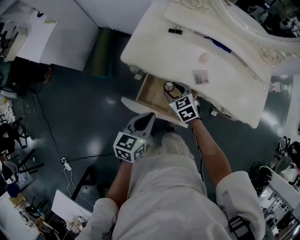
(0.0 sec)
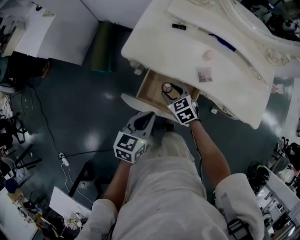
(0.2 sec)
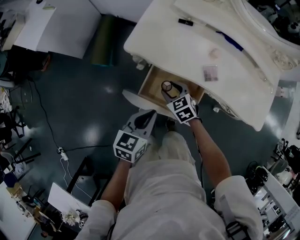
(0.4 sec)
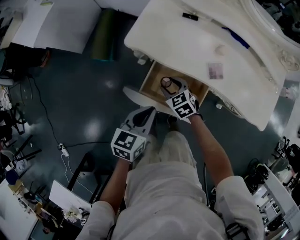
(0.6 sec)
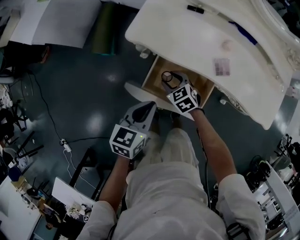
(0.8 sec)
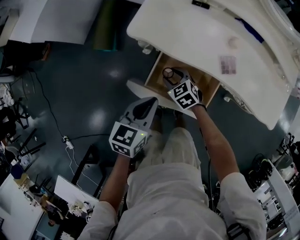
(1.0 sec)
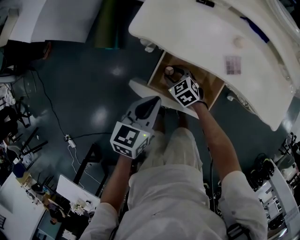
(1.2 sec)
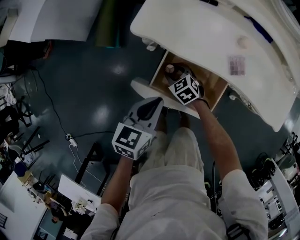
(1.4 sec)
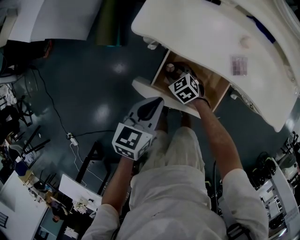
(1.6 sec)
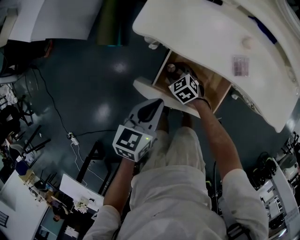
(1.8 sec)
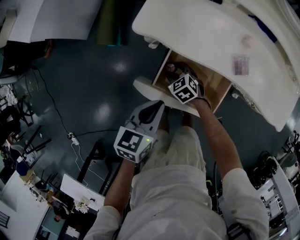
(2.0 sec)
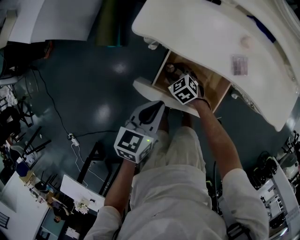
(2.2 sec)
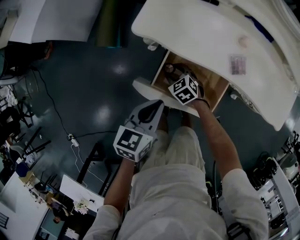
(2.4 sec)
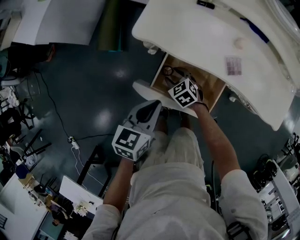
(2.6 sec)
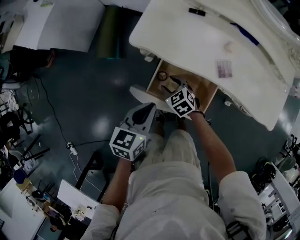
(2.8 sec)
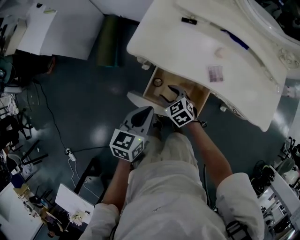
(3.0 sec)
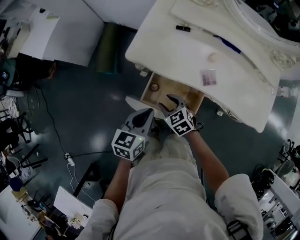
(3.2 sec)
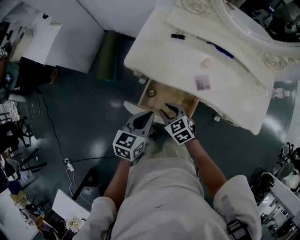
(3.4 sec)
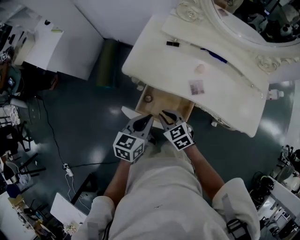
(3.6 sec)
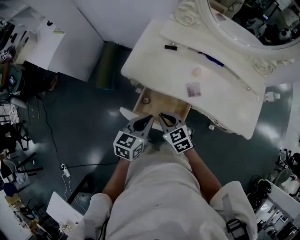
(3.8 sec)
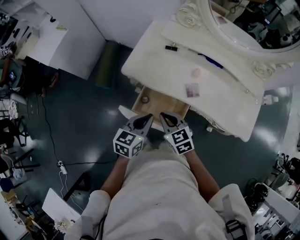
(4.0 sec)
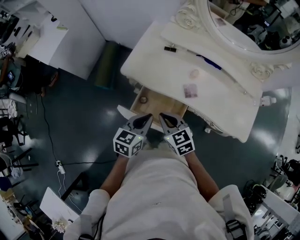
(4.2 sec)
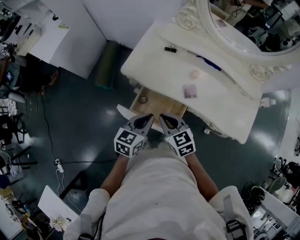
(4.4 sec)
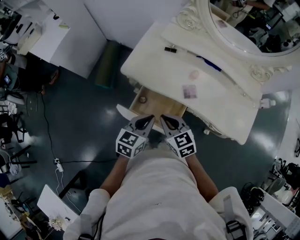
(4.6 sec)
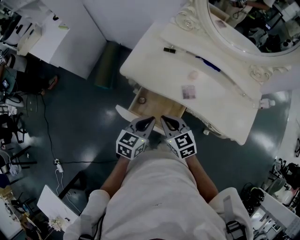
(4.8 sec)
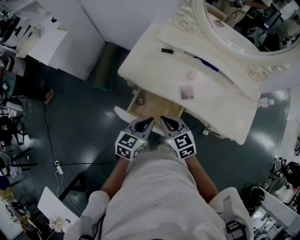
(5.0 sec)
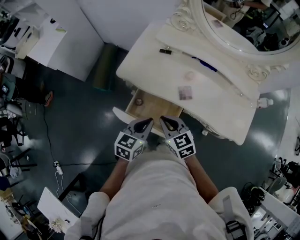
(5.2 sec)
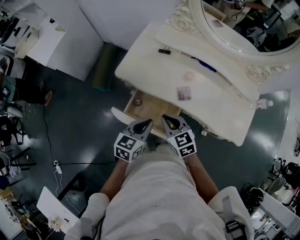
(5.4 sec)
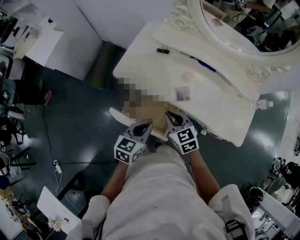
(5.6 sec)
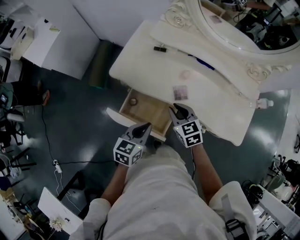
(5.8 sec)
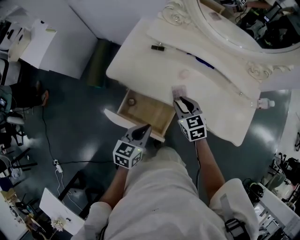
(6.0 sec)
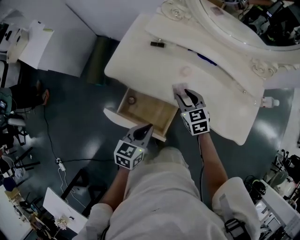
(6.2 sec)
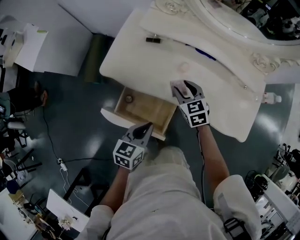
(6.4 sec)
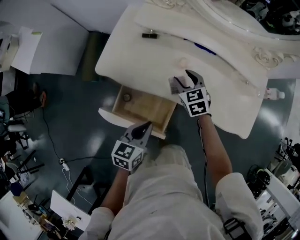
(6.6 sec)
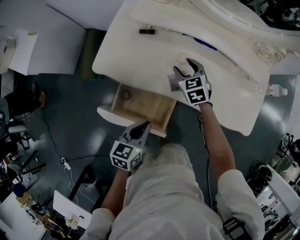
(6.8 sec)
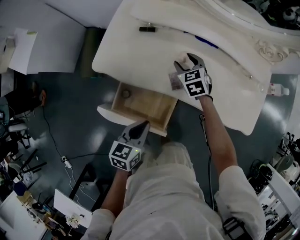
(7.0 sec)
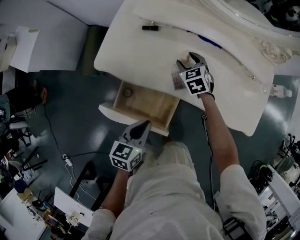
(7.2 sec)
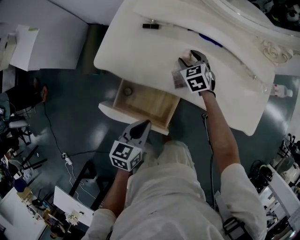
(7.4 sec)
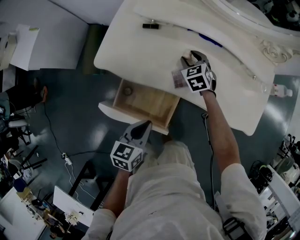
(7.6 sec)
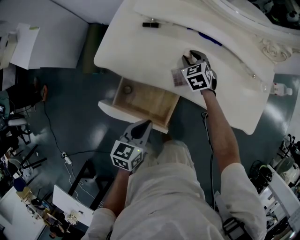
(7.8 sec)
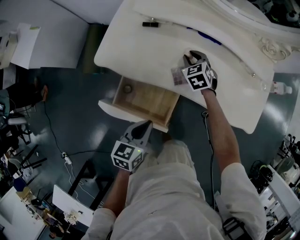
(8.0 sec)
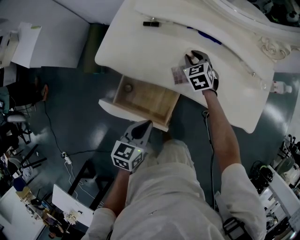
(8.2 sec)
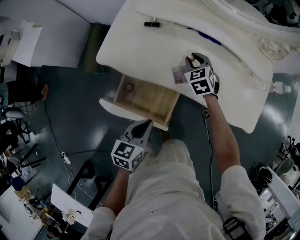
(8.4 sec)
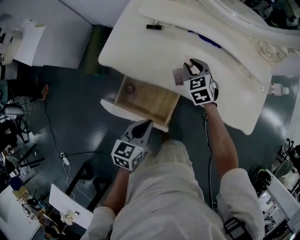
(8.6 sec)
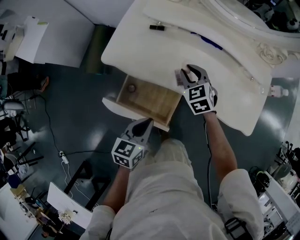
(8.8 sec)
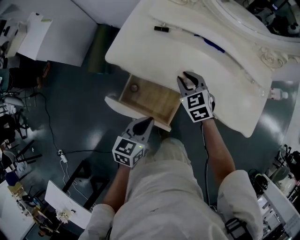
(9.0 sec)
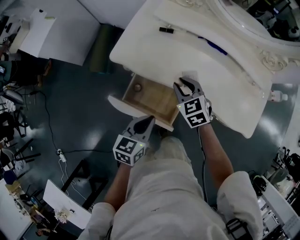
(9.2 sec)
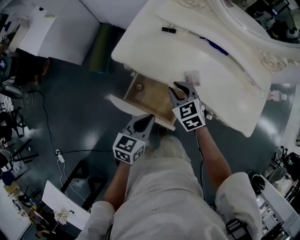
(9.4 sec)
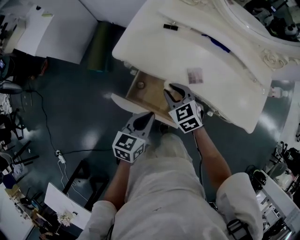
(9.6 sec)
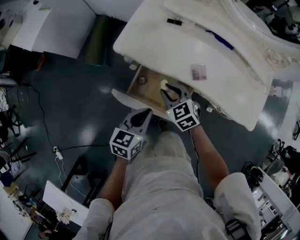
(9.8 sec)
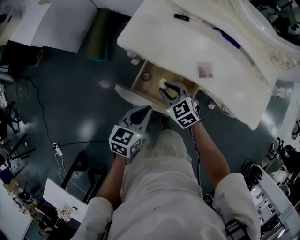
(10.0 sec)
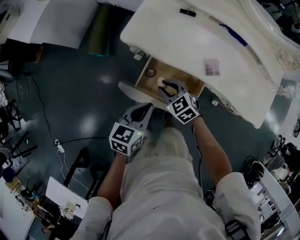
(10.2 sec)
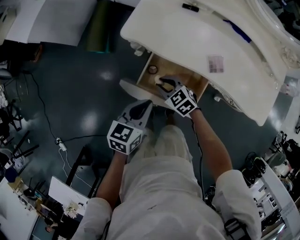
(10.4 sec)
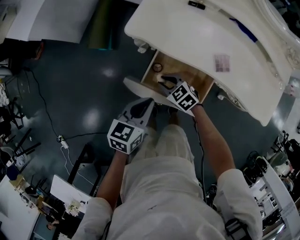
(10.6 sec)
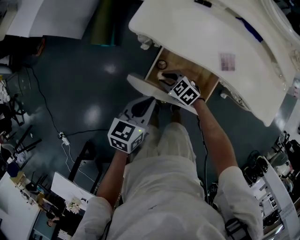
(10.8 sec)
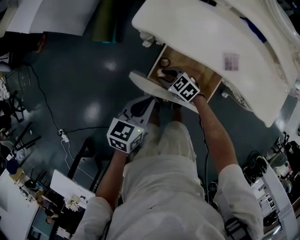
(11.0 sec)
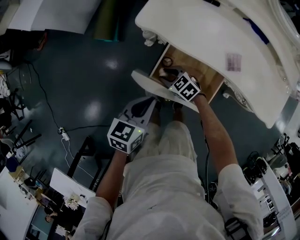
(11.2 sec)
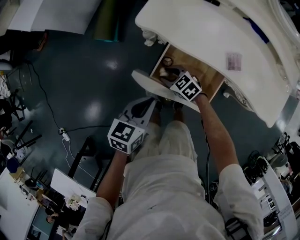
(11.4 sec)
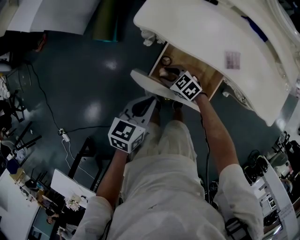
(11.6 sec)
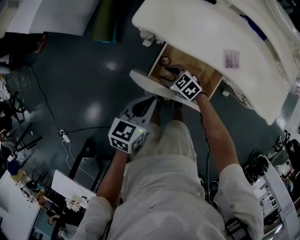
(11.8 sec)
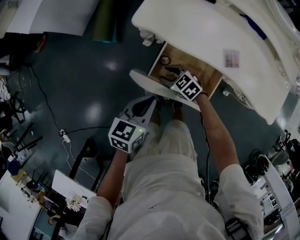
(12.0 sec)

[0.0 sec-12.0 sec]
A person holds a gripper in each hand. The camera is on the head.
0.0 sec to 1.6 sec: The left gripper is displaced downward by some 10 cm. Meanwhile the right gripper goes about 20 cm downward and to the left.
1.6 sec to 3.0 sec: The right gripper travels upward by approximately 10 cm. Meanwhile the left gripper is displaced upward by about 5 cm.
3.0 sec to 4.4 sec: The left gripper shifts roughly 10 cm to the right and upward, while the right gripper is displaced upward and to the right by roughly 20 cm, and closes.
4.4 sec to 6.0 sec: The left gripper travels to the right by some 5 cm; the right gripper goes some 20 cm to the right and forward.
6.0 sec to 7.6 sec: The right gripper moves forward and downward, approximately 20 cm.
7.6 sec to 9.0 sec: The right gripper shifts about 15 cm backward and upward.
9.0 sec to 10.4 sec: The left gripper moves to the left, some 15 cm. The right gripper goes roughly 30 cm to the left, downward and backward, and changes its angle by about 30 degrees.
10.4 sec to 12.0 sec: The right gripper shifts roughly 5 cm downward.

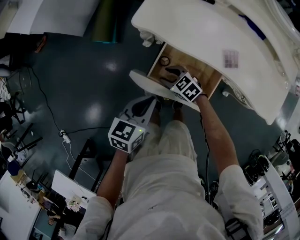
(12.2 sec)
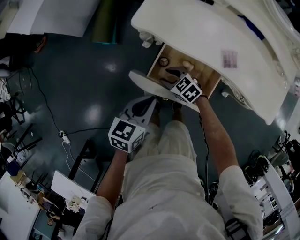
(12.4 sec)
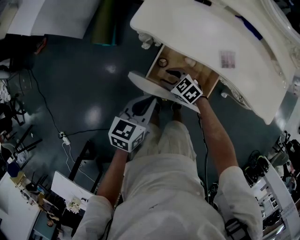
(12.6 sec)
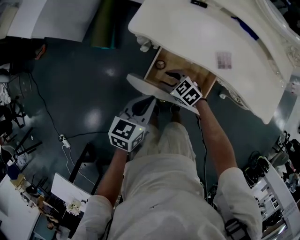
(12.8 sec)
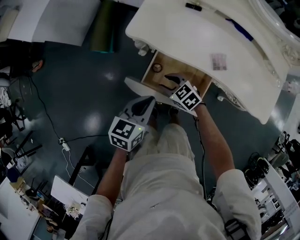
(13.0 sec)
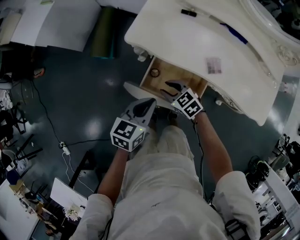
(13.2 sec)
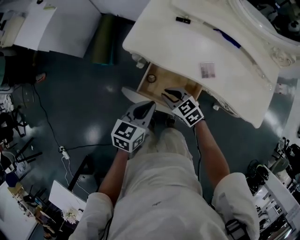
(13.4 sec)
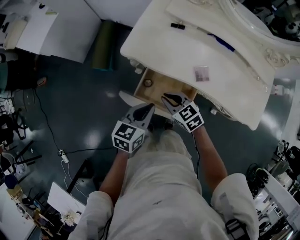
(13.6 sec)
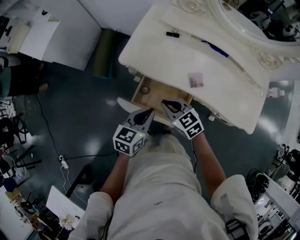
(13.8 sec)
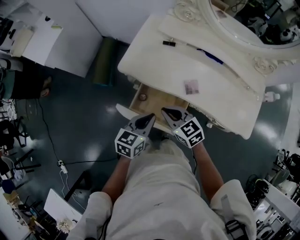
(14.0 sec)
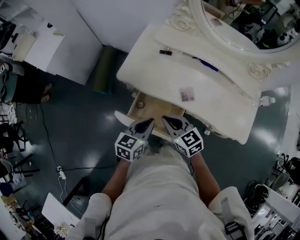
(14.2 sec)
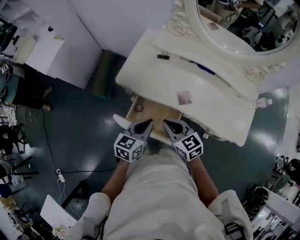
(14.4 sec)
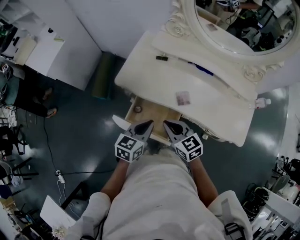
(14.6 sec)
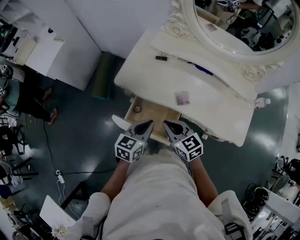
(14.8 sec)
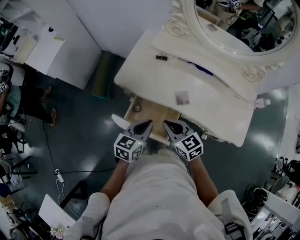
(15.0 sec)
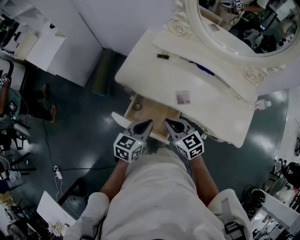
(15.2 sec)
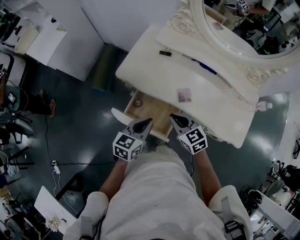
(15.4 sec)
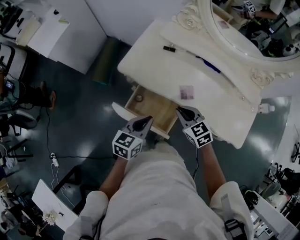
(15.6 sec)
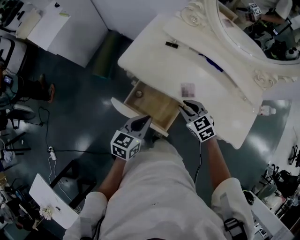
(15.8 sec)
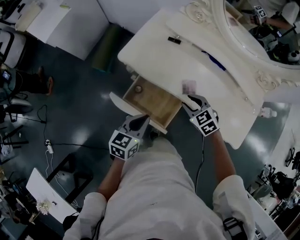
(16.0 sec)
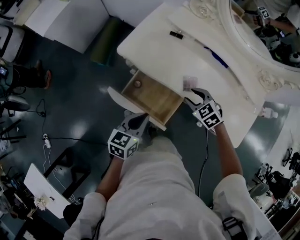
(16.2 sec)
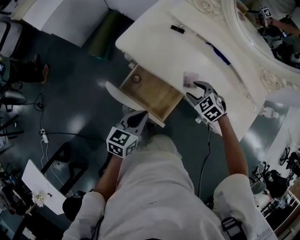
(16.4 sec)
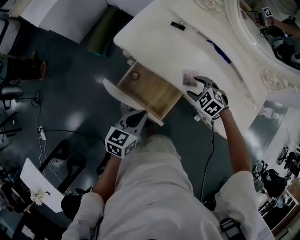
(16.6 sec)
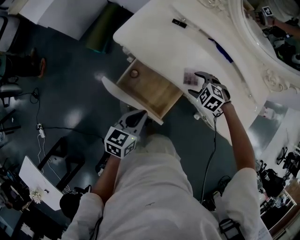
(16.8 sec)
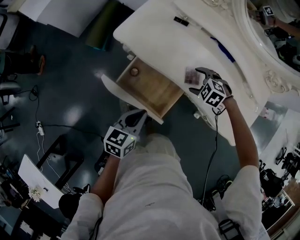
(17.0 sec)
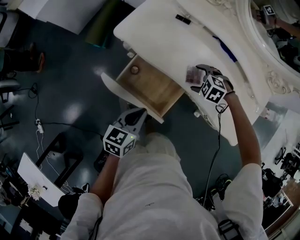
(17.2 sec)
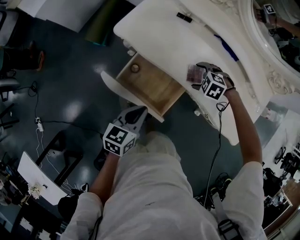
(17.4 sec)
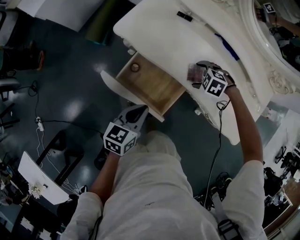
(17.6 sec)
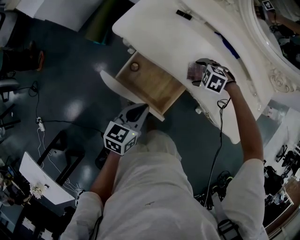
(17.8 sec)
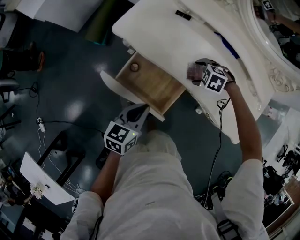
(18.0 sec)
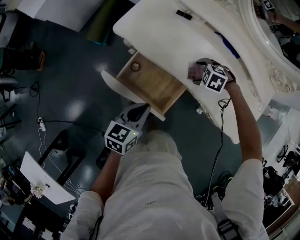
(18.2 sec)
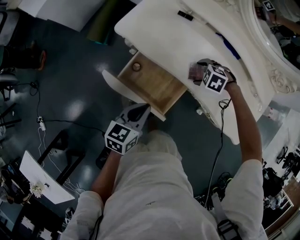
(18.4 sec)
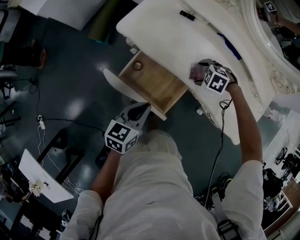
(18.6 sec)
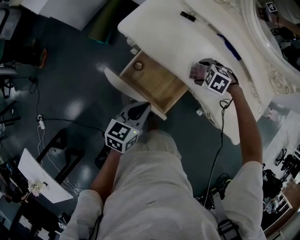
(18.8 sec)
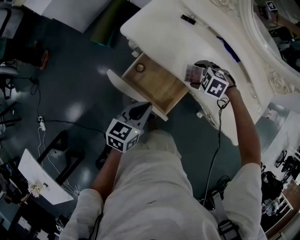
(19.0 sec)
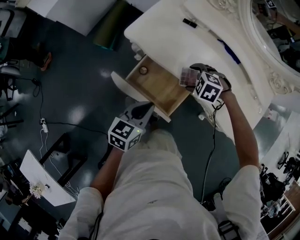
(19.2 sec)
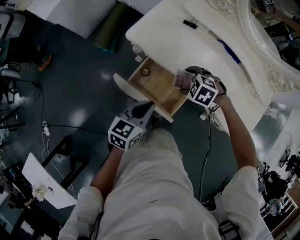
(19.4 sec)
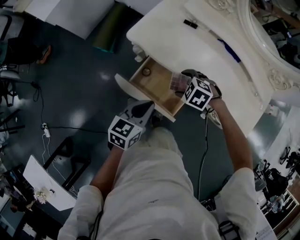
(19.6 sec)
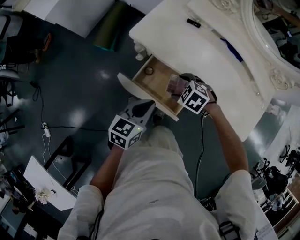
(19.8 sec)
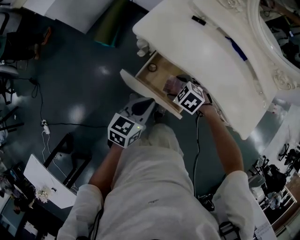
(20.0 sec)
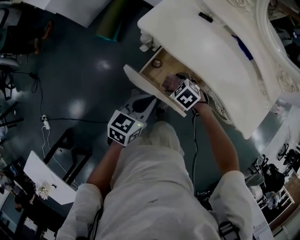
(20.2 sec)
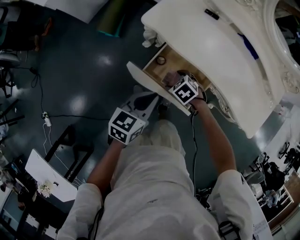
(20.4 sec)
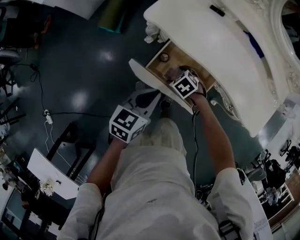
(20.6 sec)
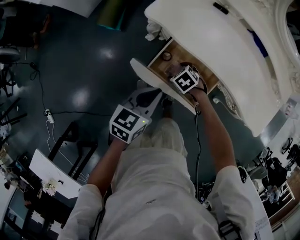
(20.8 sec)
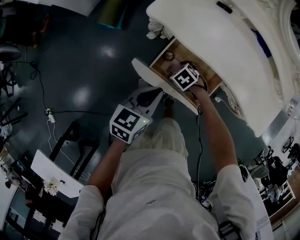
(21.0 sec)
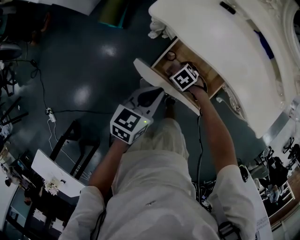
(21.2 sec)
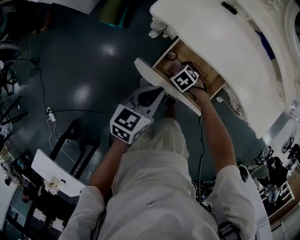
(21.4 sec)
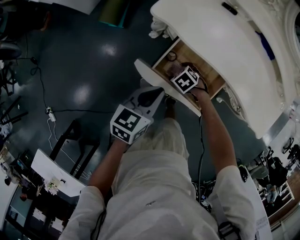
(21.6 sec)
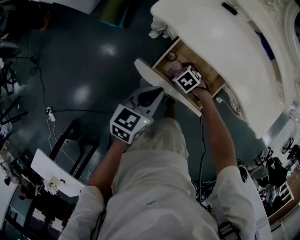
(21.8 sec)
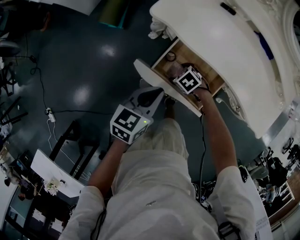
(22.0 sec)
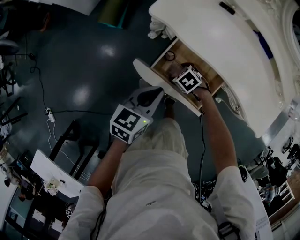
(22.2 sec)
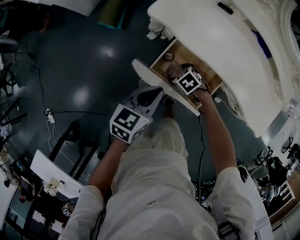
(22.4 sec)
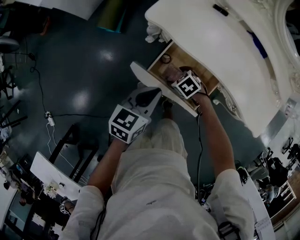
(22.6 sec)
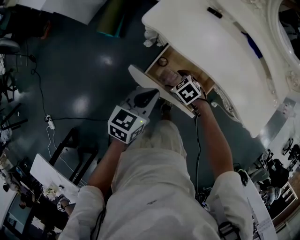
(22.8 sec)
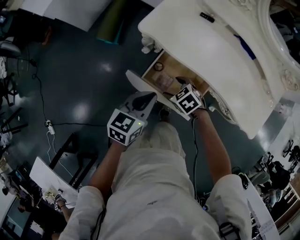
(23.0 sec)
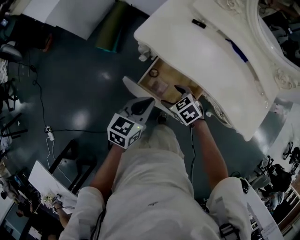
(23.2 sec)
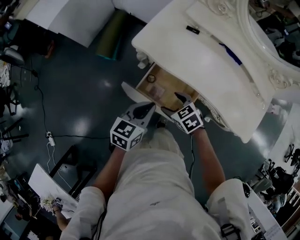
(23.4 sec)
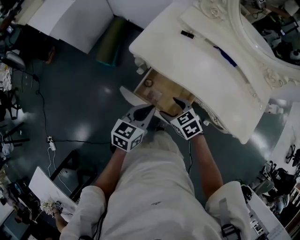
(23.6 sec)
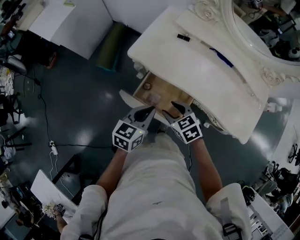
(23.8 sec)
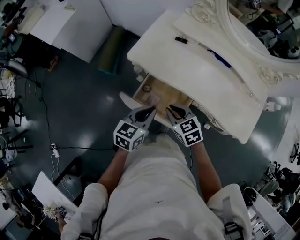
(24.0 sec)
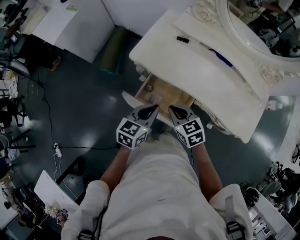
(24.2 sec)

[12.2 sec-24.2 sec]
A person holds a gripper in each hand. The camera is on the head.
12.2 sec to 13.8 sec: The left gripper travels to the right and upward by about 15 cm, while the right gripper is displaced upward and to the right by approximately 25 cm, changes its angle by about 20 degrees, and closes its fingers.
13.8 sec to 15.2 sec: The left gripper travels to the right by approximately 5 cm. Meanwhile the right gripper goes some 10 cm to the right and upward.
15.2 sec to 16.6 sec: The right gripper is displaced downward, to the right and forward by roughly 20 cm, points its fingers roughly 40 degrees further downward, and opens; the left gripper travels downward by roughly 5 cm.
16.6 sec to 18.2 sec: The right gripper shifts roughly 5 cm downward, and swivels approximately 20 degrees.
18.2 sec to 19.8 sec: The left gripper changes place by roughly 5 cm. The right gripper moves roughly 20 cm.
19.8 sec to 21.2 sec: The left gripper moves approximately 10 cm. The right gripper shifts approximately 20 cm downward, and rotates roughly 20 degrees.
21.2 sec to 22.6 sec: The grippers move only a little.
22.6 sec to 24.2 sec: The left gripper changes place by some 10 cm. The right gripper moves upward, some 25 cm, swivels about 40 degrees, and closes.
